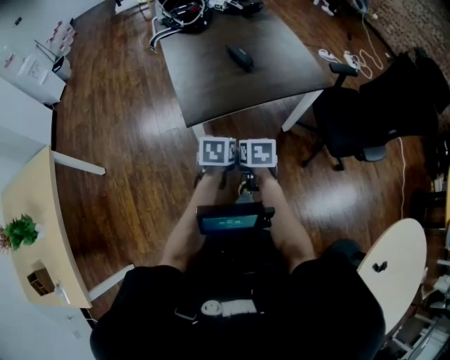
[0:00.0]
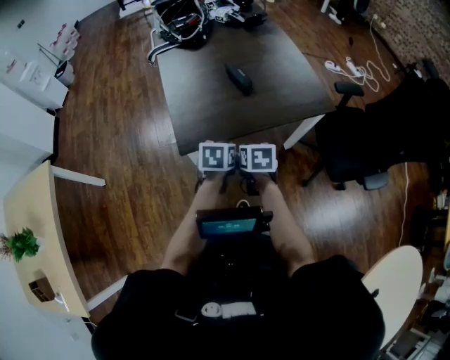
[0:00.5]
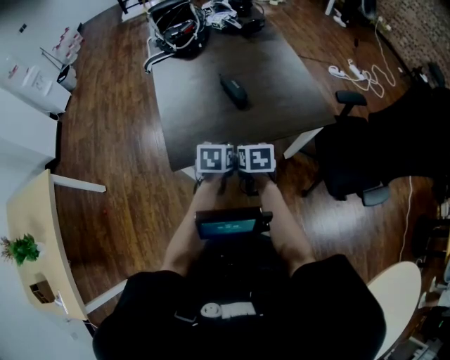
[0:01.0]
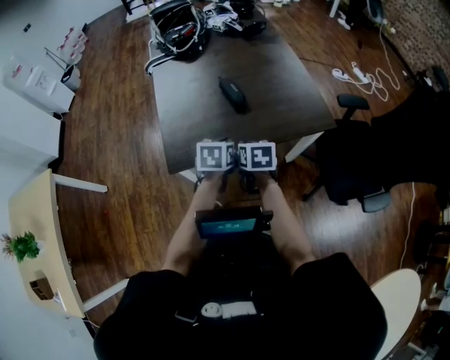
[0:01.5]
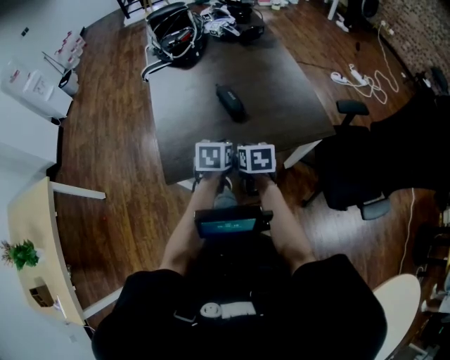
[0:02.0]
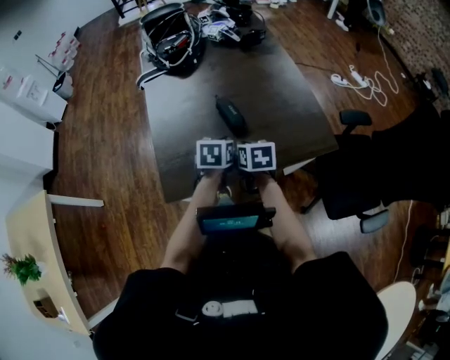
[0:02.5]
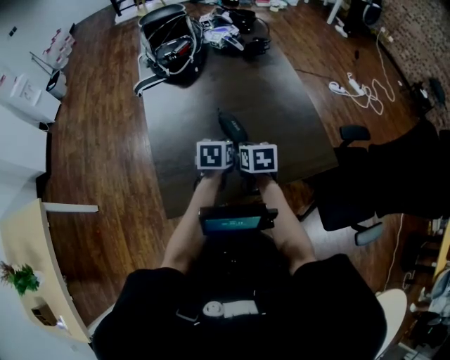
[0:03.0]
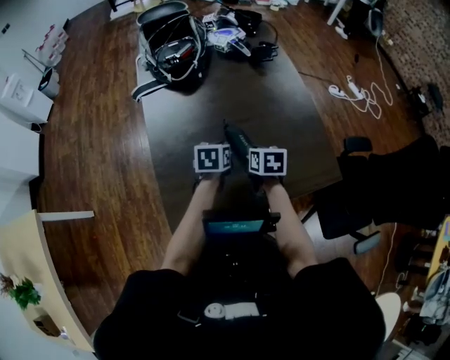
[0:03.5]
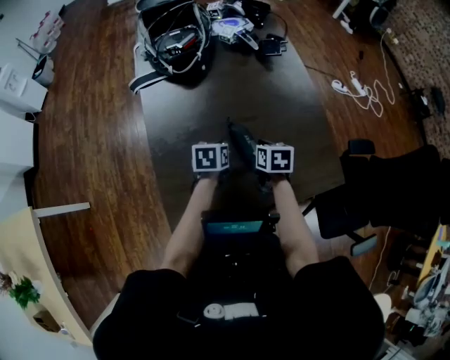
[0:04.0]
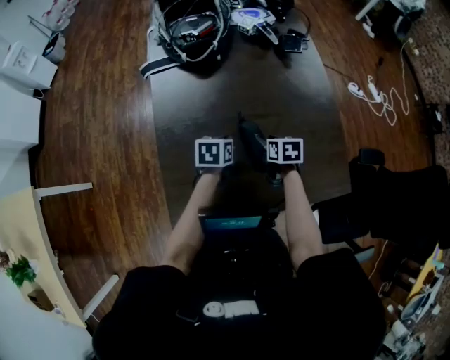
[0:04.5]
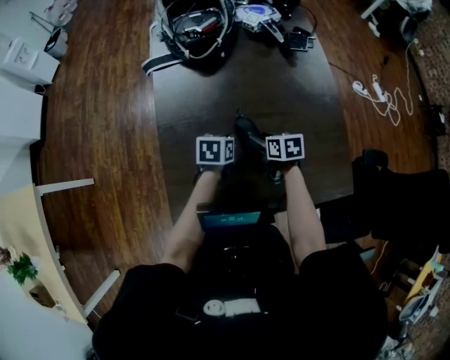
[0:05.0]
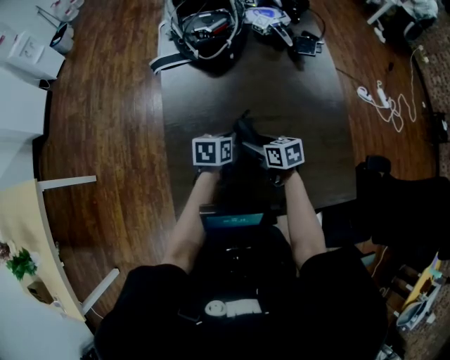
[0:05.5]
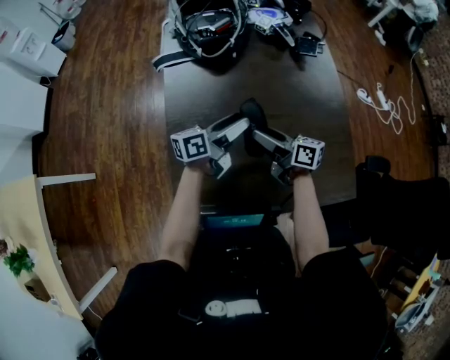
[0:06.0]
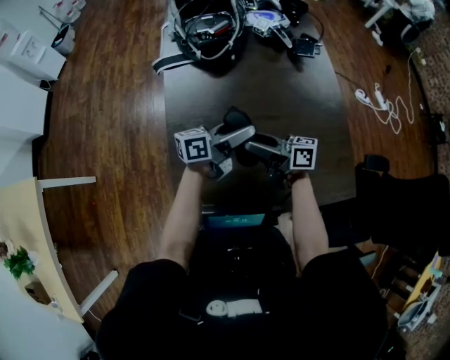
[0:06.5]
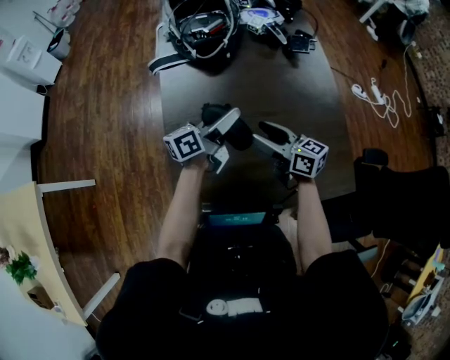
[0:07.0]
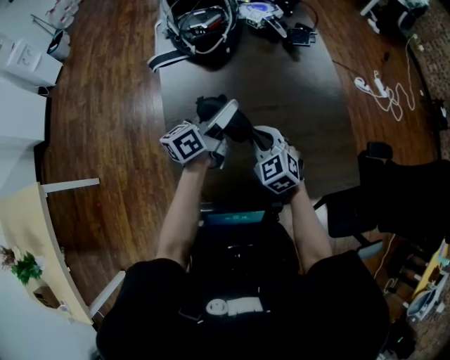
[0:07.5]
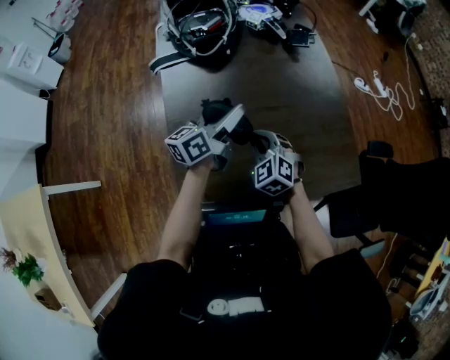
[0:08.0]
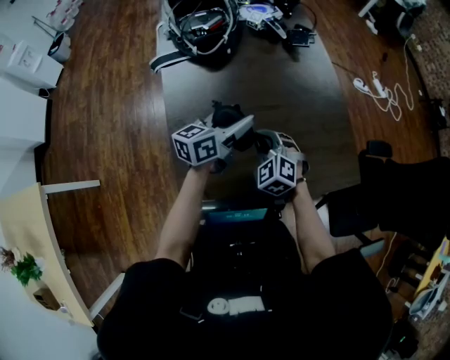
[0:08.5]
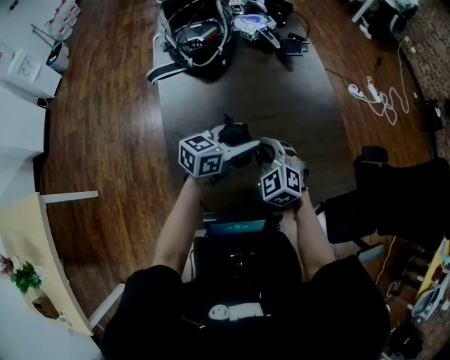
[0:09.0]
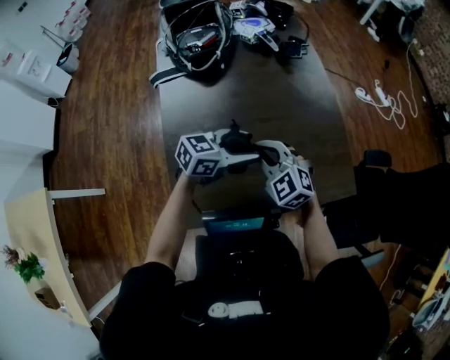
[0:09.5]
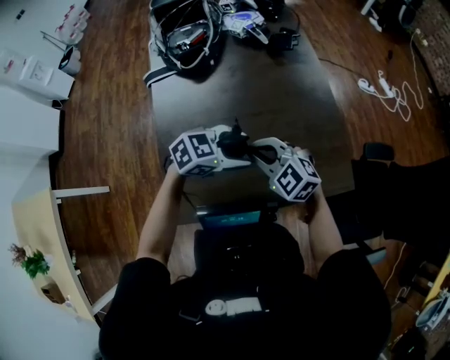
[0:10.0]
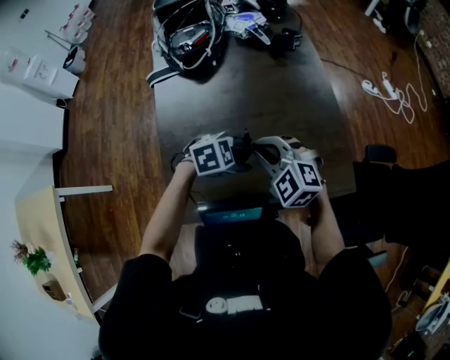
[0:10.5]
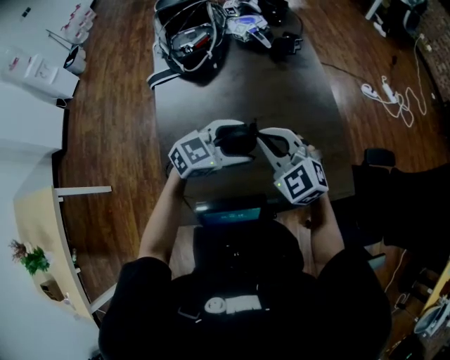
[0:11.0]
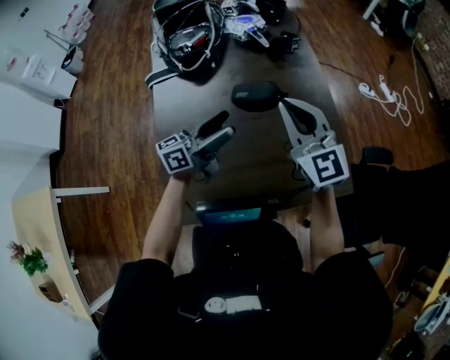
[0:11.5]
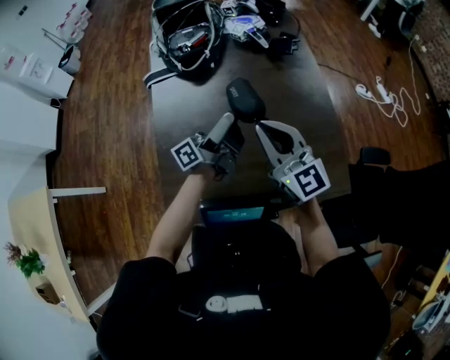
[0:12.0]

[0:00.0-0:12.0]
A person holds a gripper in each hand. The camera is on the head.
0:00.0 to 0:02.0: The grippers both shift forward by some 25 cm.
0:02.0 to 0:04.0: The two grippers go some 25 cm forward.
0:04.0 to 0:06.0: The right gripper shifts some 10 cm to the left and upward, tilts its fingers roughly 40 degrees upward, and opens its fingers; the left gripper shifts about 10 cm upward, angles its fingers upward, by roughly 50 degrees, and opens up.
0:06.0 to 0:08.0: The right gripper ends up some 5 cm from where it was, rotates around the line of its fingers by some 70 degrees, counterclockwise from behind, and closes. Meanwhile the left gripper shifts by about 5 cm.
0:08.0 to 0:10.0: The left gripper ends up some 20 cm from where it was, and angles its fingers downward, by roughly 40 degrees; the right gripper moves upward, approximately 10 cm, and swivels about 30 degrees.
0:10.0 to 0:12.0: The left gripper moves roughly 15 cm, and angles its fingers upward, by about 60 degrees; the right gripper shifts approximately 10 cm upward, and angles its fingers upward, by about 30 degrees.

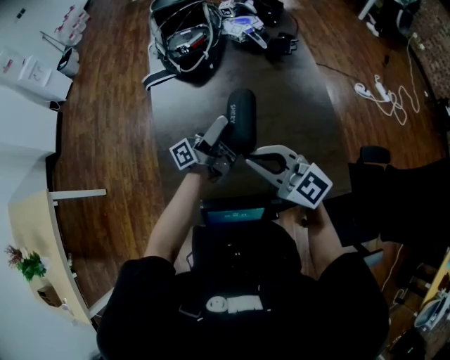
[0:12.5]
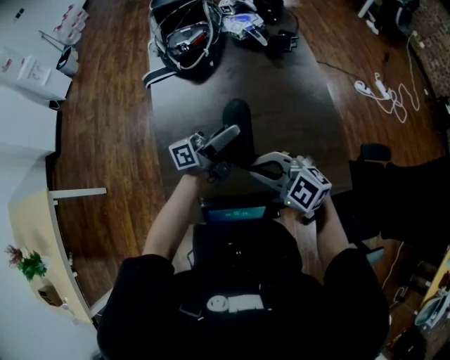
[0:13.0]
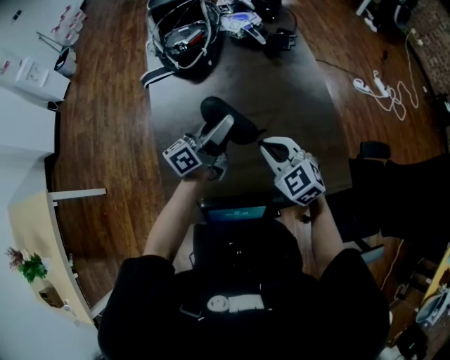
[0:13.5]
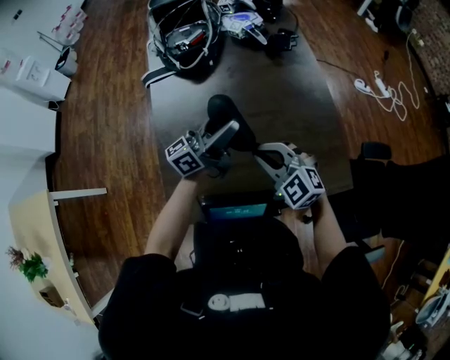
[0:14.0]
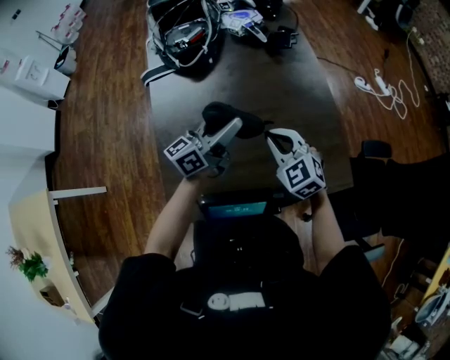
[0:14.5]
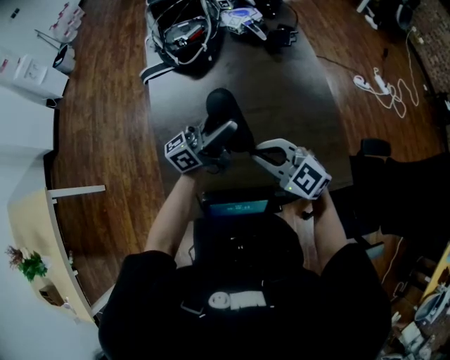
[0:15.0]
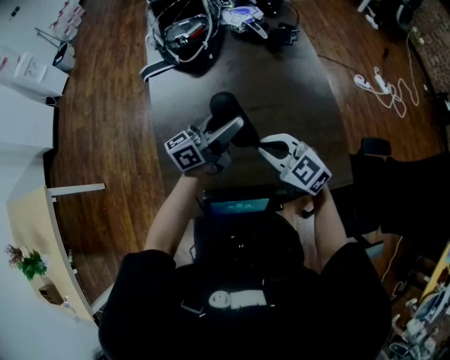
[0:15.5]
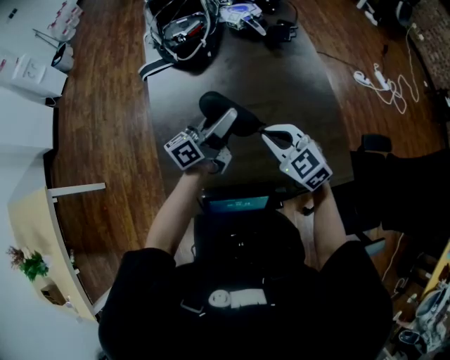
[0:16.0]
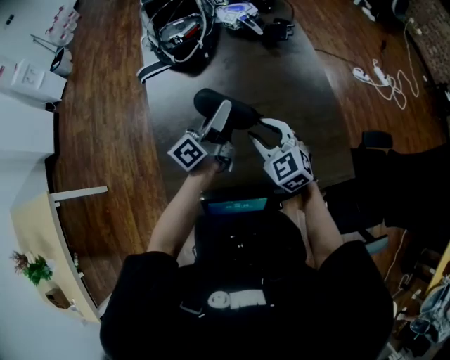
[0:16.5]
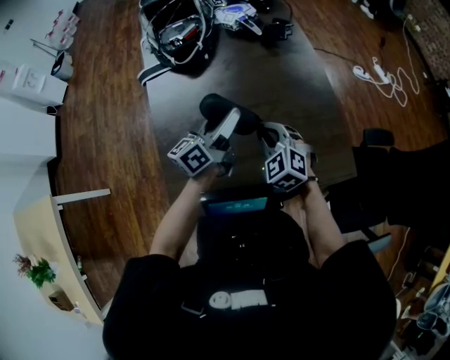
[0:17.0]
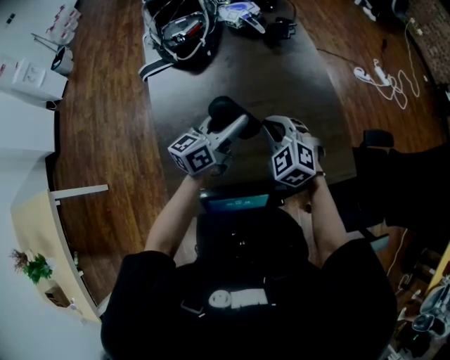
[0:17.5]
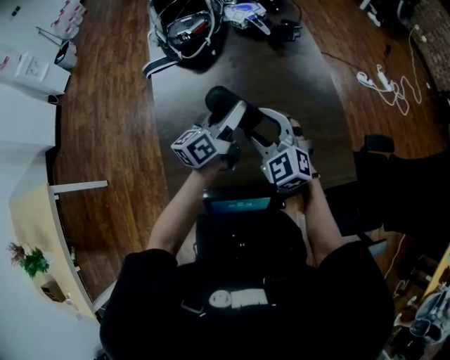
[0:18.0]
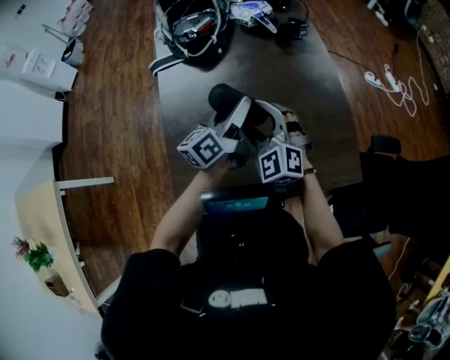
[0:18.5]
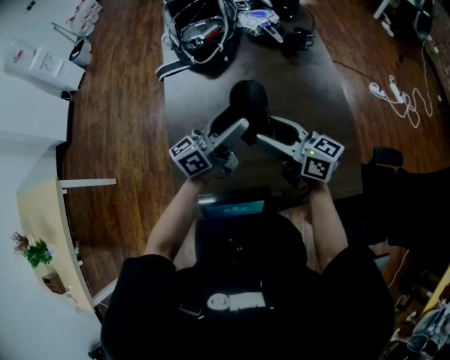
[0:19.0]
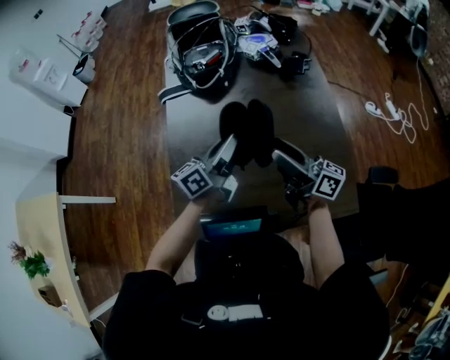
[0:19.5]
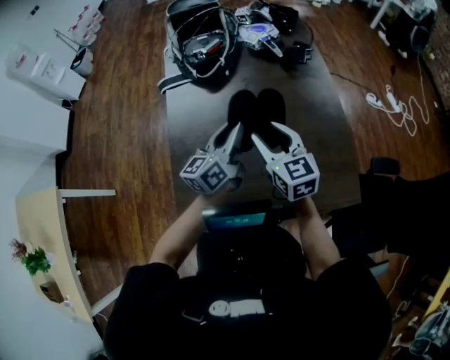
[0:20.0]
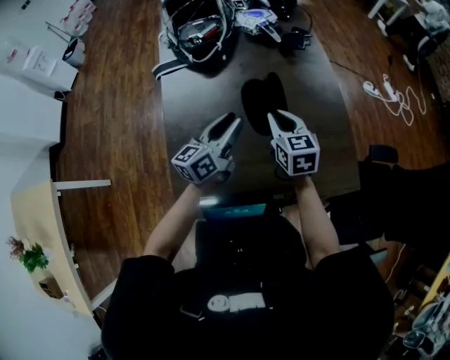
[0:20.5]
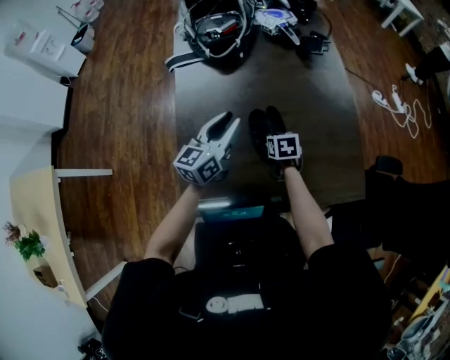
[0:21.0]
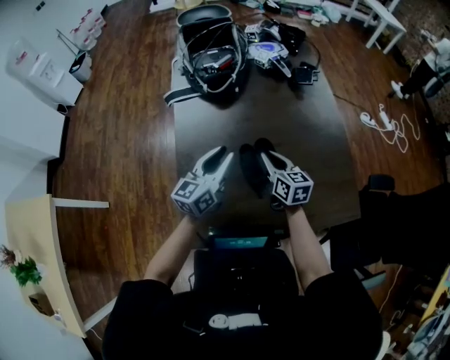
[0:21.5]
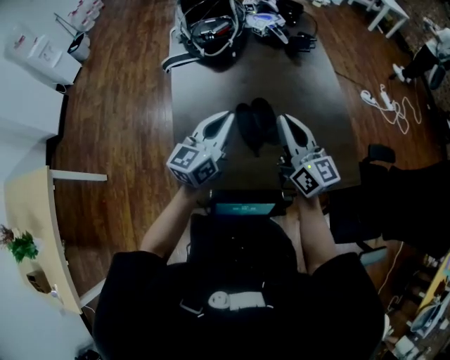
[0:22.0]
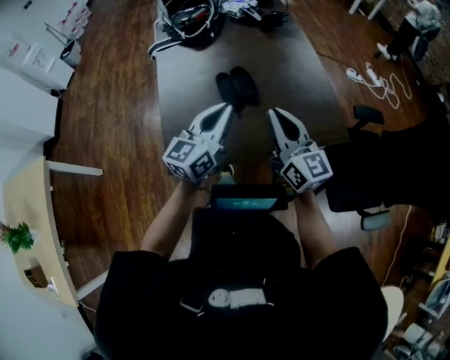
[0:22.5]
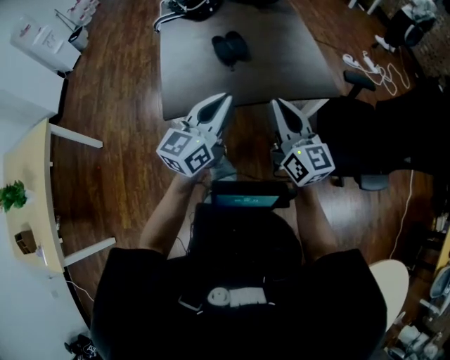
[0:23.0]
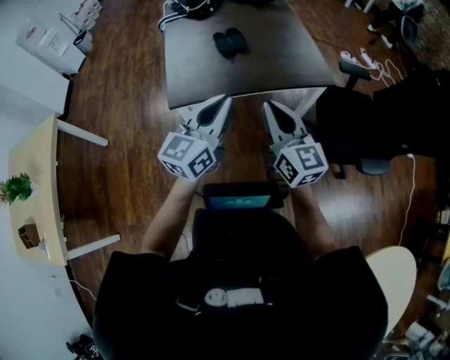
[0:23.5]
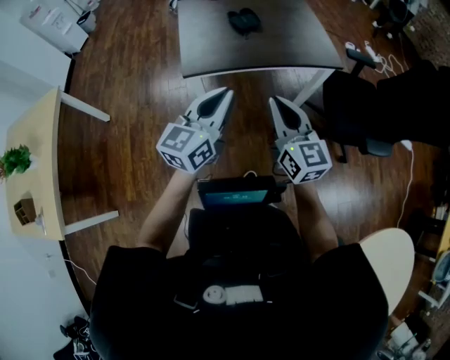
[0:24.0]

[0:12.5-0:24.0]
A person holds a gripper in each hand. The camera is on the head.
0:12.5 to 0:14.5: The right gripper moves downward, to the right and forward, some 10 cm, and rotates roughly 40 degrees; the left gripper turns by some 40 degrees.
0:14.5 to 0:16.5: The right gripper opens. The left gripper rotates some 20 degrees.
0:16.5 to 0:18.5: The right gripper travels to the left by some 5 cm, rotates roughly 20 degrees, and opens its fingers.
0:18.5 to 0:20.0: The left gripper closes its fingers. Meanwhile the right gripper twists some 50 degrees clockwise, seen from behind.
0:20.0 to 0:22.0: Both grippers move backward, some 5 cm. The left gripper swivels approximately 20 degrees. The right gripper moves approximately 25 cm downward and comes back, swivels approximately 30 degrees, and closes up.
0:22.0 to 0:24.0: Both grippers are carried backward, roughly 50 cm.

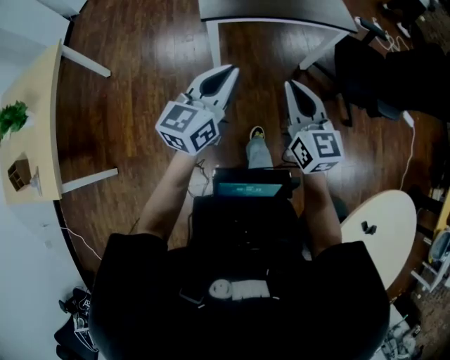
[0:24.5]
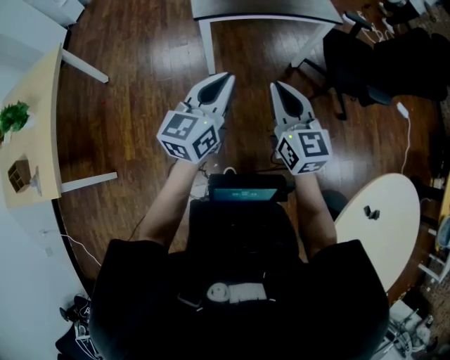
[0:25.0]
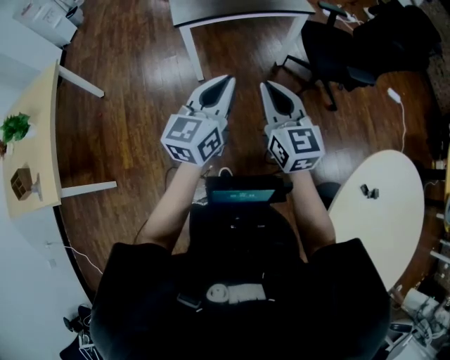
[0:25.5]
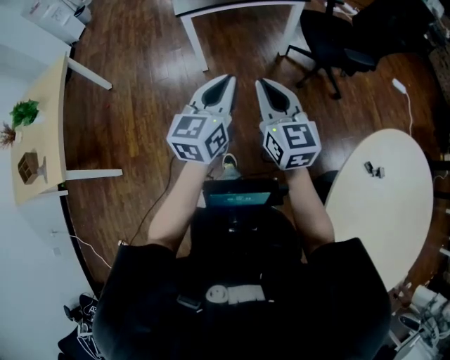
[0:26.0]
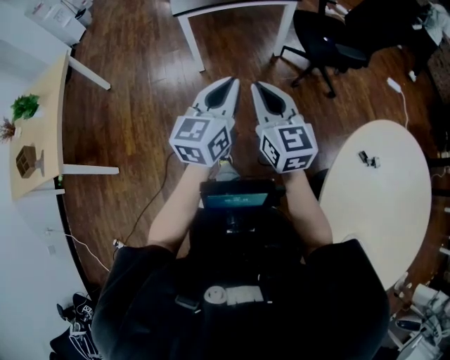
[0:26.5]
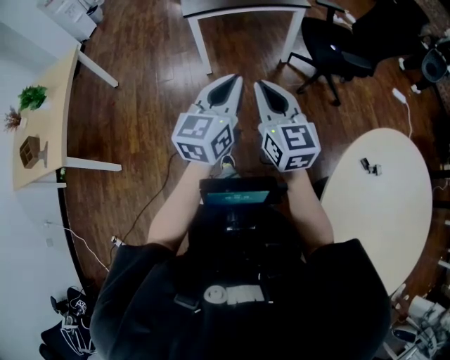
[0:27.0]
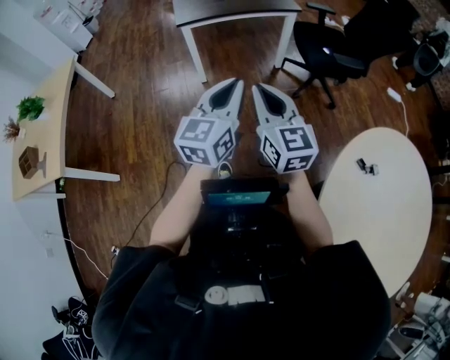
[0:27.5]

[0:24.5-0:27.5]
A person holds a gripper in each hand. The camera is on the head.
0:24.5 to 0:26.0: The right gripper is displaced backward by approximately 25 cm. Meanwhile the left gripper moves backward and to the right, about 25 cm.
0:26.0 to 0:27.5: The two grippers go approximately 5 cm backward.
